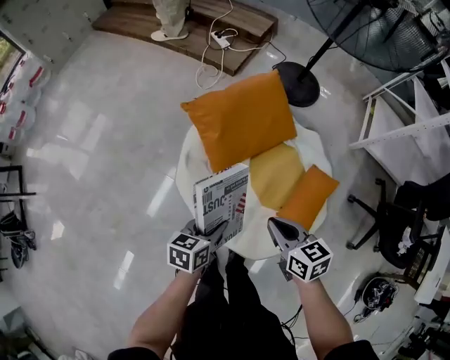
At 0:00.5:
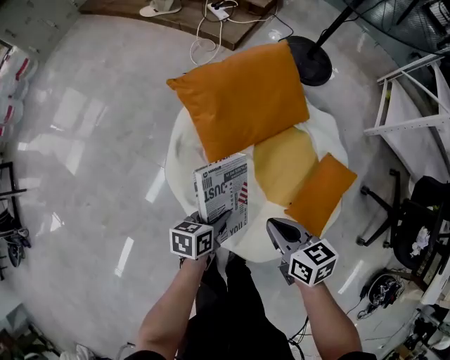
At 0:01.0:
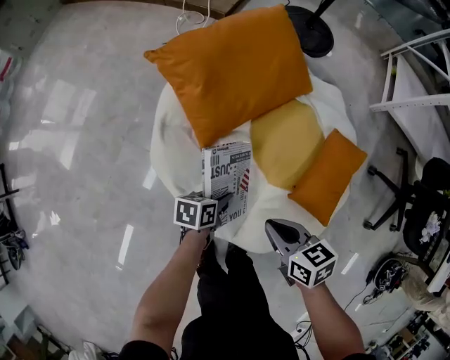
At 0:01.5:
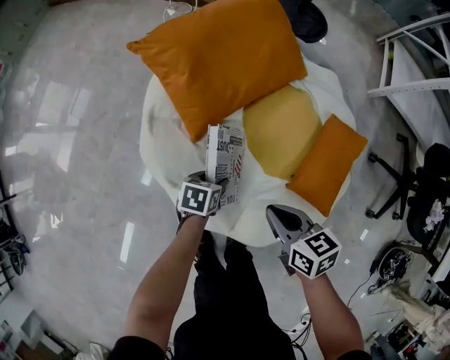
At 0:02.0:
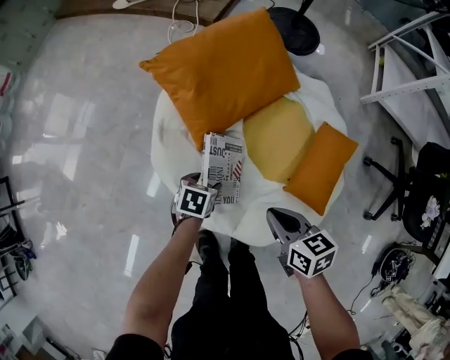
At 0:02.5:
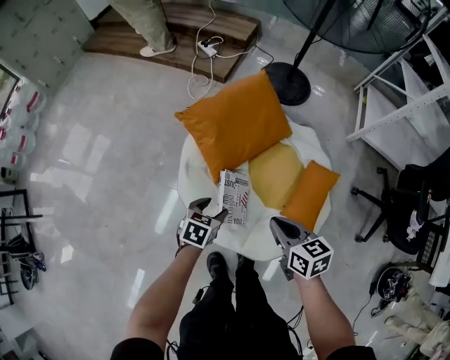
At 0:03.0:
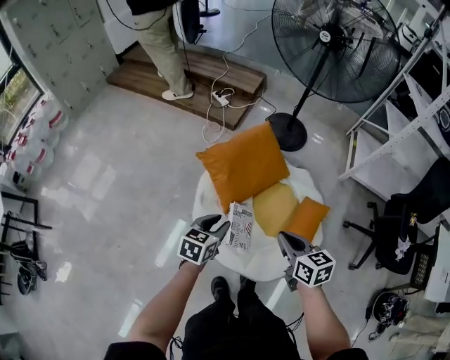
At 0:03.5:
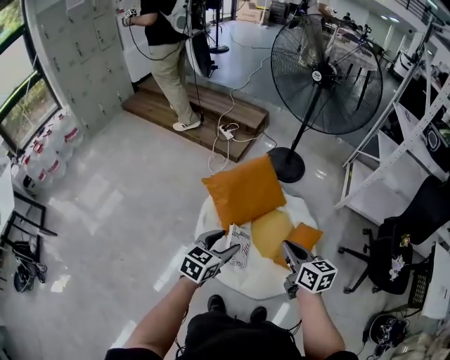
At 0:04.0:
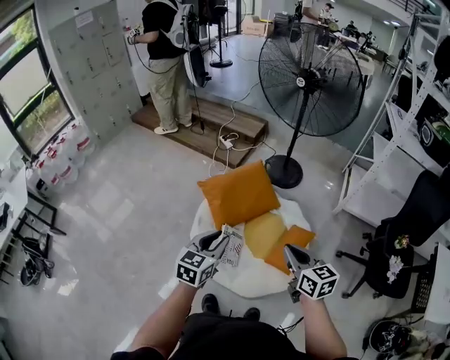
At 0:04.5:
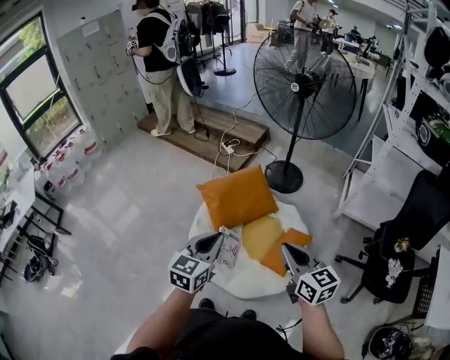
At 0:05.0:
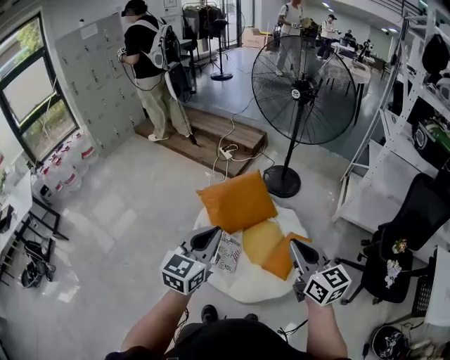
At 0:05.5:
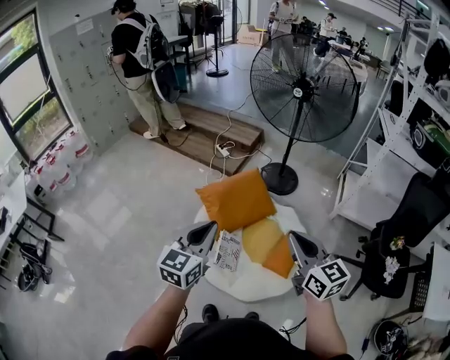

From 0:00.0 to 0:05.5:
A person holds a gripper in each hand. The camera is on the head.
From 0:00.0 to 0:02.0: The left gripper is displaced downward by approximately 30 cm, rotates roughly 30 degrees, and opens. The right gripper is displaced downward by some 20 cm.
From 0:02.0 to 0:03.5: Both grippers move upward, roughly 50 cm. The left gripper tilts its fingers about 40 degrees upward, and closes, then reopens, while the right gripper changes its angle by about 20 degrees.
From 0:03.5 to 0:05.5: The left gripper travels upward by roughly 20 cm, changes its angle by some 30 degrees, and closes its fingers; the right gripper travels upward, to the right and backward by about 20 cm, and turns by some 20 degrees.

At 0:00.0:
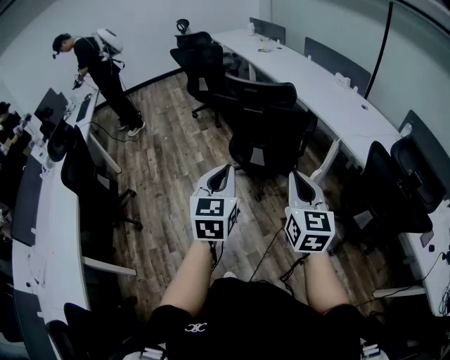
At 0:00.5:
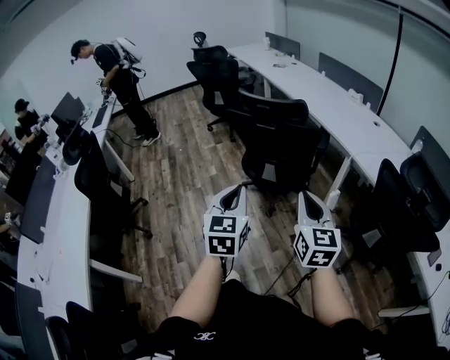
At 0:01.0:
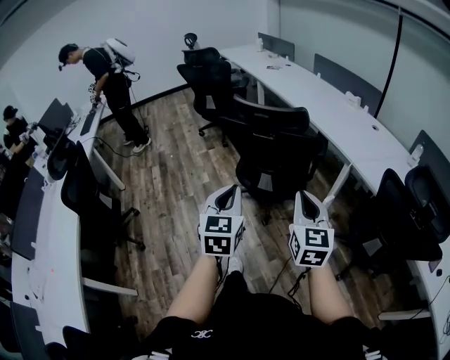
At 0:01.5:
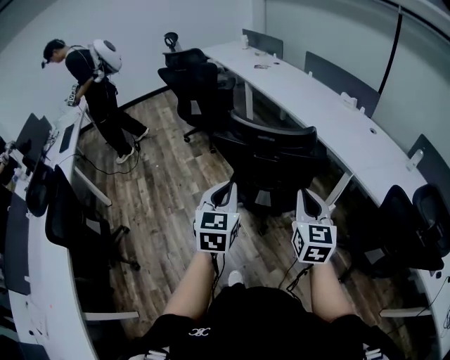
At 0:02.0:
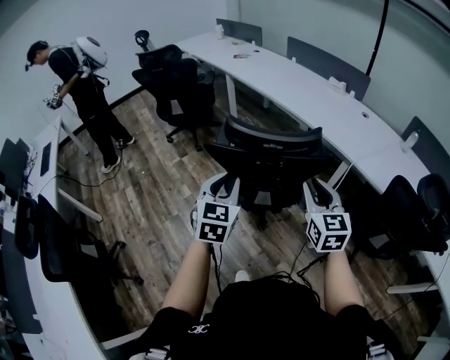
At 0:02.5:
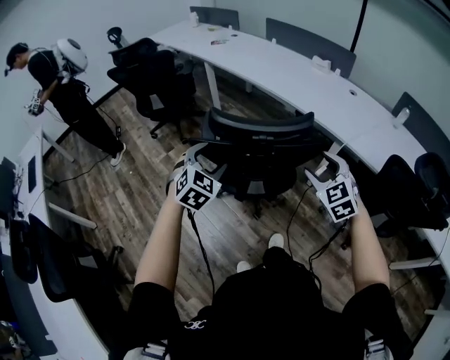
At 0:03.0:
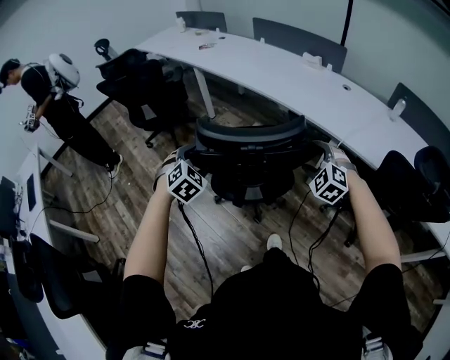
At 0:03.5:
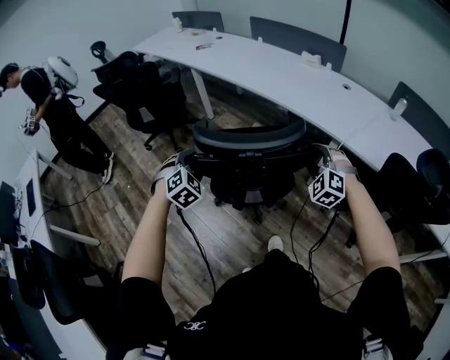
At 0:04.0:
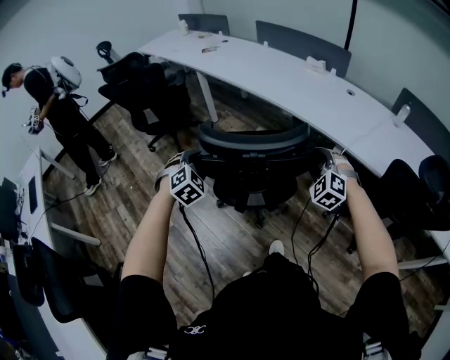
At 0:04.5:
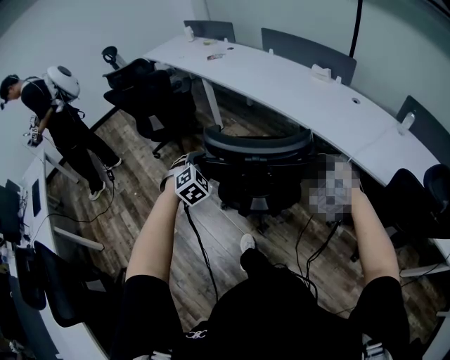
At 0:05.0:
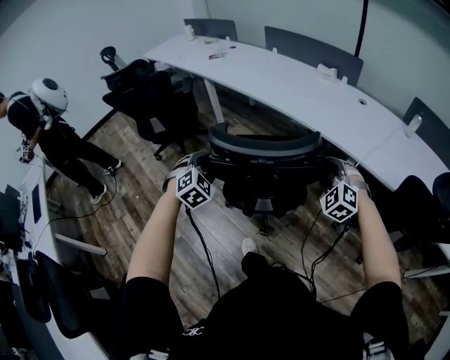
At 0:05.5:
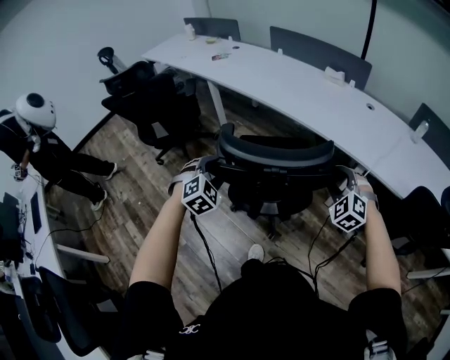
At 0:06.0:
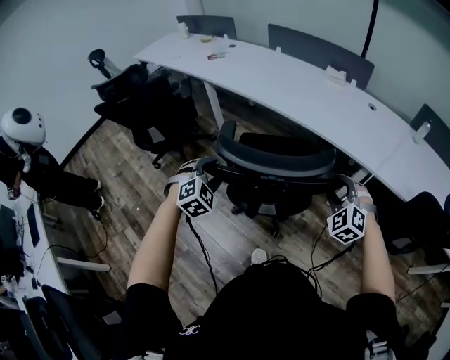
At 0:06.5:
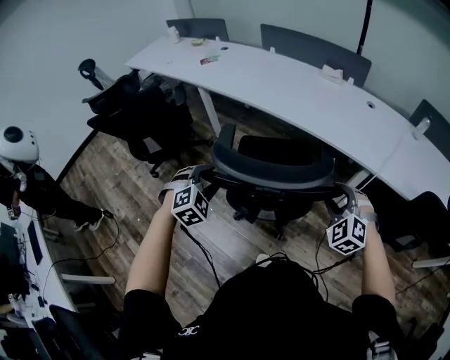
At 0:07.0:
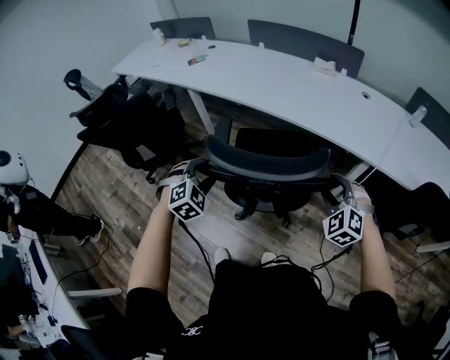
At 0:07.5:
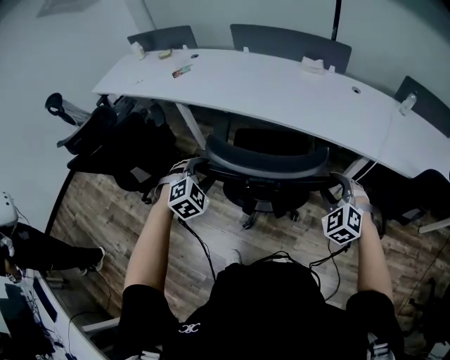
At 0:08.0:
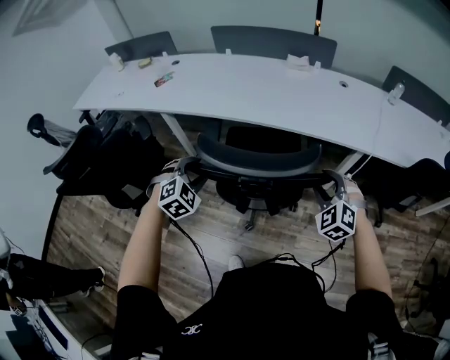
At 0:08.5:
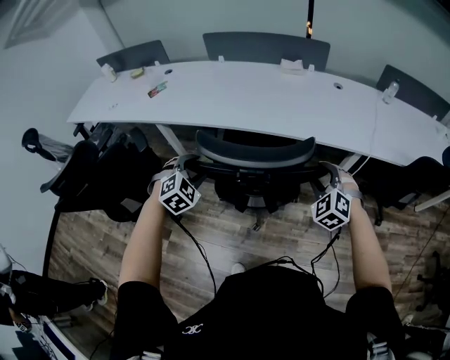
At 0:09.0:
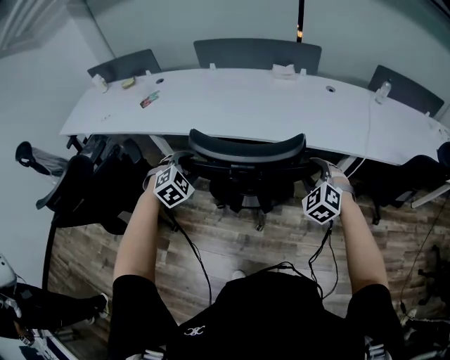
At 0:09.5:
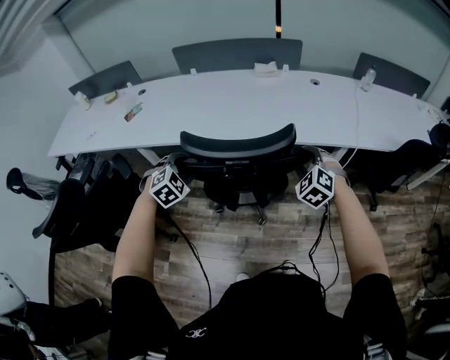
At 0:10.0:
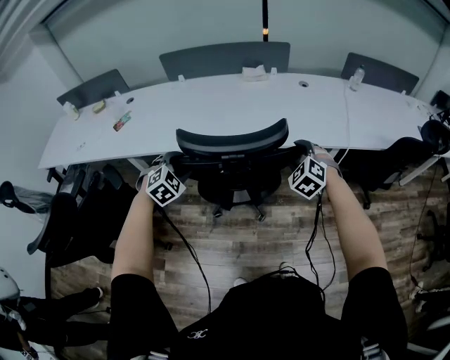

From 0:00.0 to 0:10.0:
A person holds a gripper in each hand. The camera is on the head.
From 0:00.0 to 0:02.0: Both grippers move forward, about 35 cm. The left gripper turns by roughly 20 degrees.
From 0:02.0 to 0:04.0: The right gripper heads forward, downward and to the right, covering about 20 cm, rotates around the line of its fingers by some 50 degrees, counterclockwise from behind, and opens and closes again, while the left gripper shifts about 20 cm forward and downward, rotates around the line of its fingers by roughly 50 degrees, clockwise from behind, and opens.
From 0:04.0 to 0:06.0: The right gripper moves to the left and forward, approximately 10 cm; the left gripper goes about 20 cm forward and to the left.
From 0:06.0 to 0:08.0: The left gripper moves forward and to the left, roughly 25 cm, and swivels some 20 degrees. The right gripper heads to the left and forward, covering some 15 cm, and rotates about 20 degrees.
From 0:08.0 to 0:10.0: The two grippers go approximately 20 cm forward.

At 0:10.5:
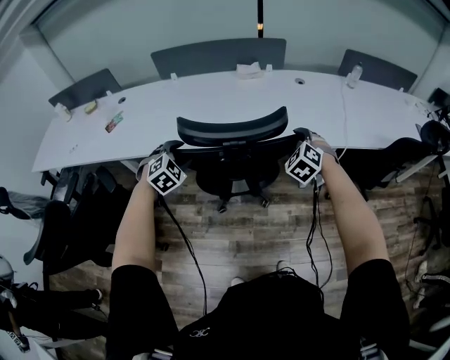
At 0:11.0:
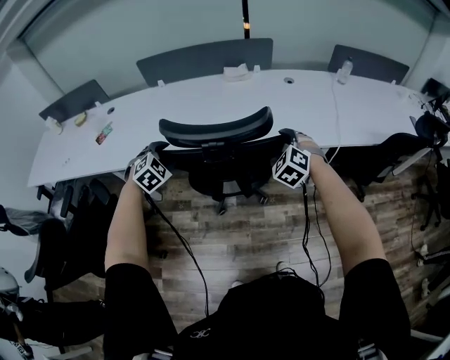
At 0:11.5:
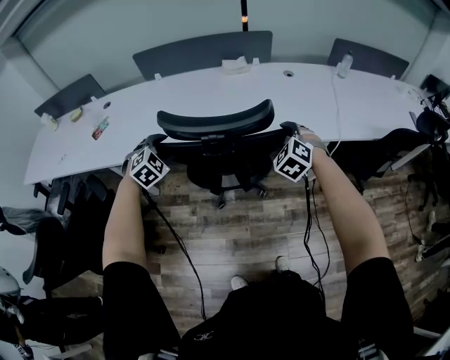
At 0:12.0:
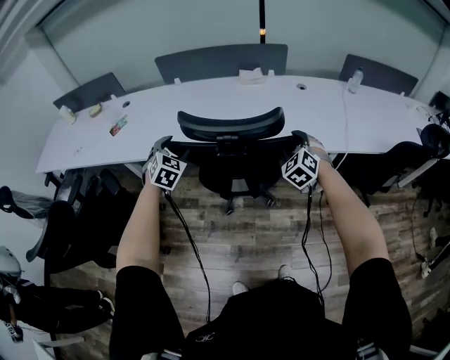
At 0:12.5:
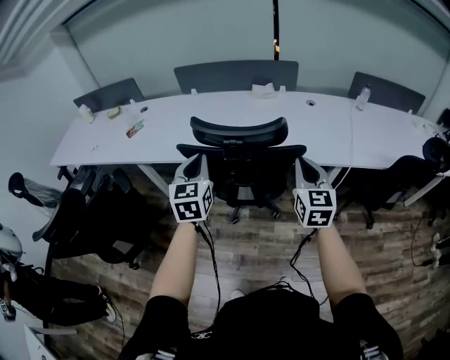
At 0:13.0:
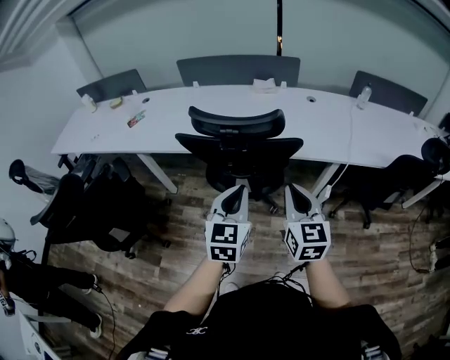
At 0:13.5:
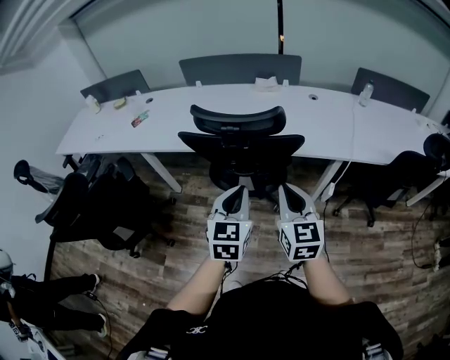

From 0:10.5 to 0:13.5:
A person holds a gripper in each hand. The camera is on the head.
From 0:10.5 to 0:12.0: The left gripper changes place by roughly 5 cm, and turns by approximately 30 degrees.
From 0:12.0 to 0:13.5: The right gripper travels backward by some 25 cm, twists roughly 50 degrees clockwise, seen from behind, and closes up, while the left gripper moves backward and to the right, roughly 35 cm, turns by roughly 40 degrees, and closes its fingers.

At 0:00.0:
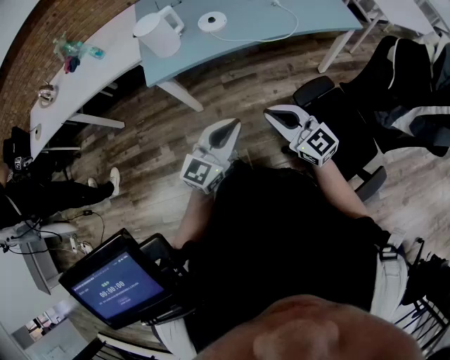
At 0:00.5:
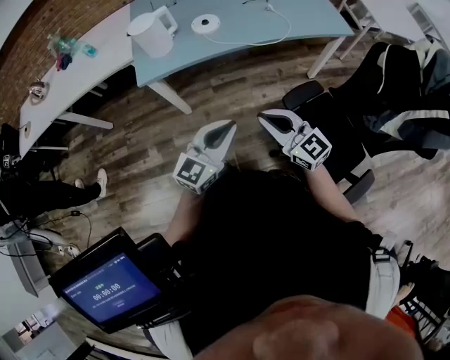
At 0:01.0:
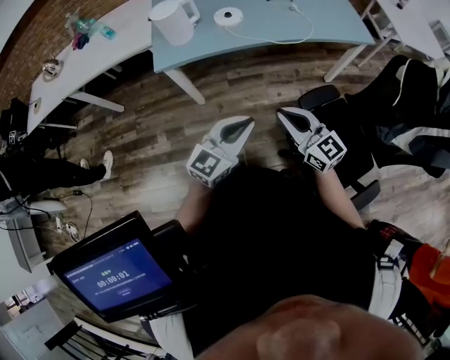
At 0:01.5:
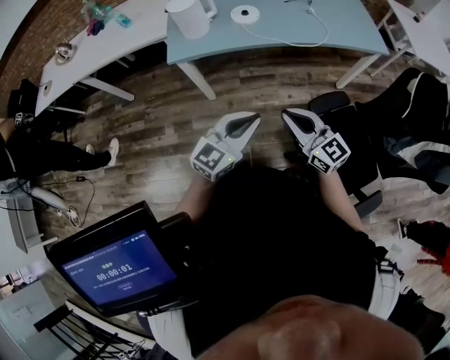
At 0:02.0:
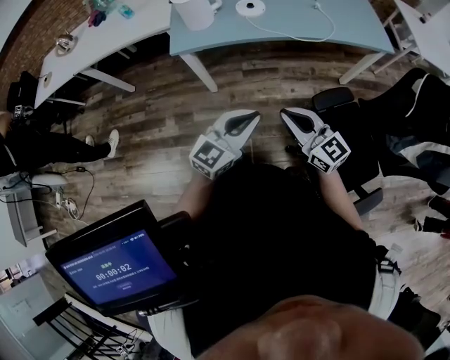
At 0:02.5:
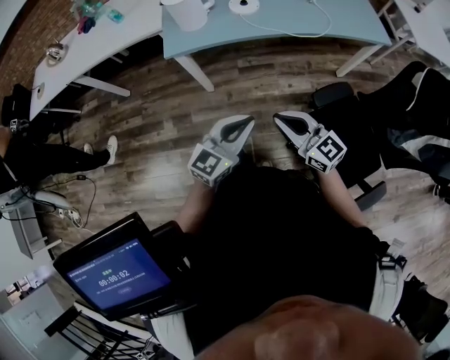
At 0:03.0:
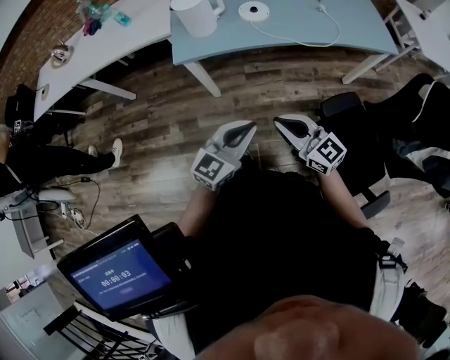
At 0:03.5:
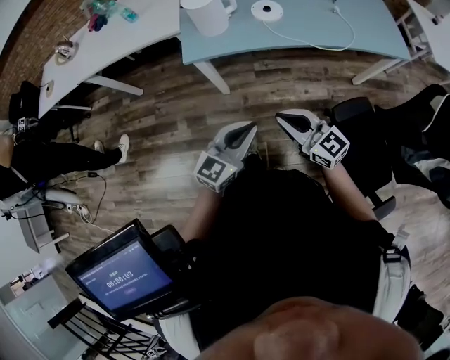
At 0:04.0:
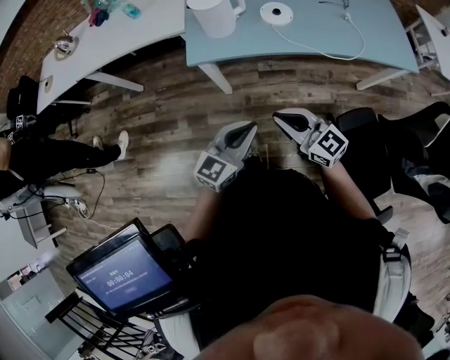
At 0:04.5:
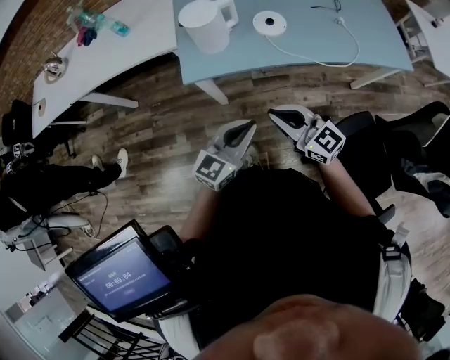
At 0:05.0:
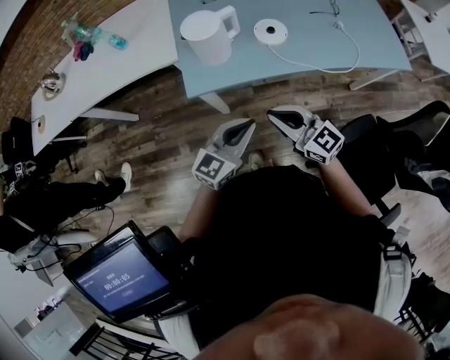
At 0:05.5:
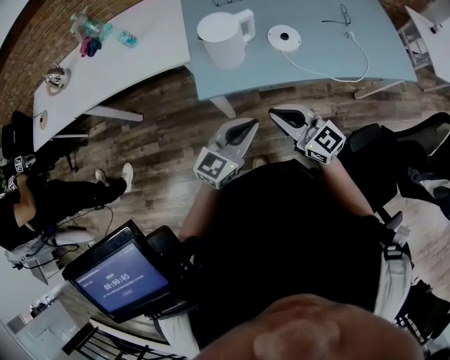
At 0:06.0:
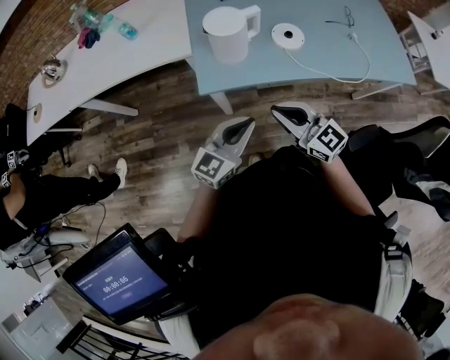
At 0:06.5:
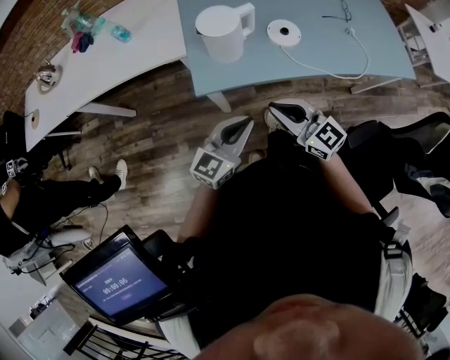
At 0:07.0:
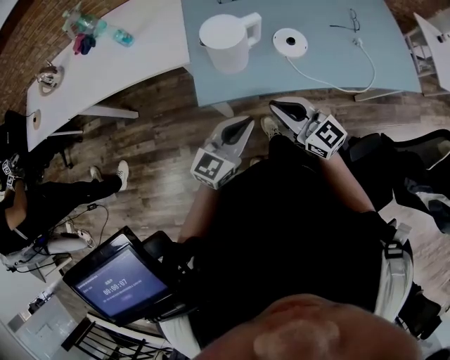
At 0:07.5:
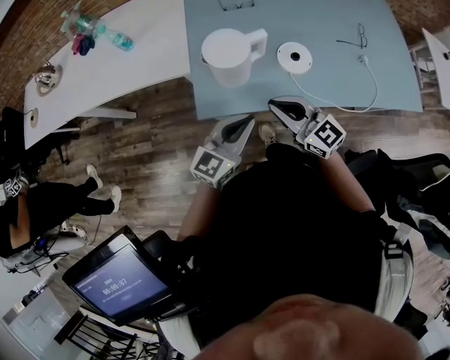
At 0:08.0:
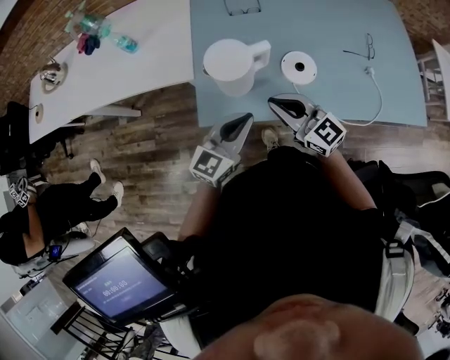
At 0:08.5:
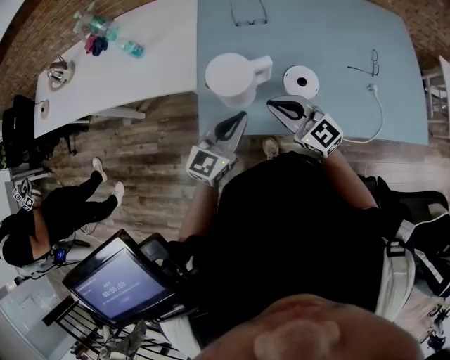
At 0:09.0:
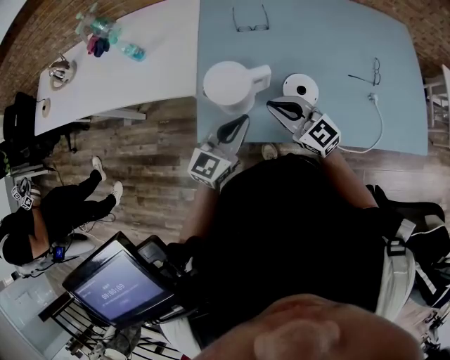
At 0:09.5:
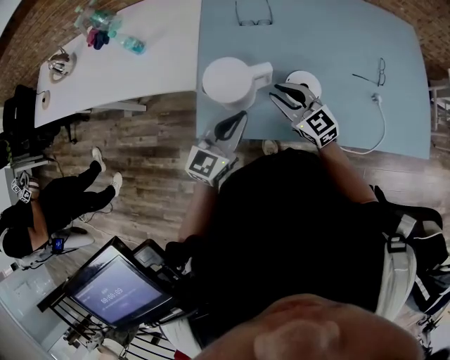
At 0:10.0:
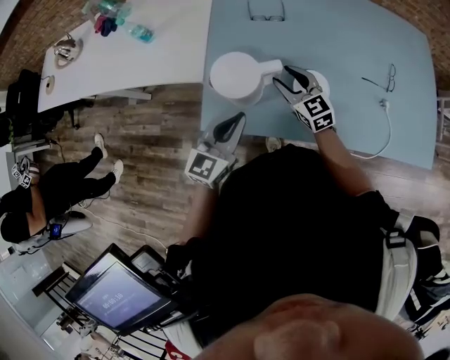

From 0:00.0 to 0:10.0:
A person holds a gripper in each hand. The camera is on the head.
From 0:00.0 to 0:02.0: The grippers make only small movements.
From 0:02.0 to 0:04.0: The two grippers go approximately 15 cm forward and to the left.
From 0:04.0 to 0:06.0: The grippers both shift forward and to the left by about 15 cm.
From 0:06.0 to 0:08.0: Both grippers move forward, some 20 cm.
From 0:08.0 to 0:10.0: The left gripper travels forward by about 5 cm, while the right gripper shifts about 20 cm forward and downward, and opens.
